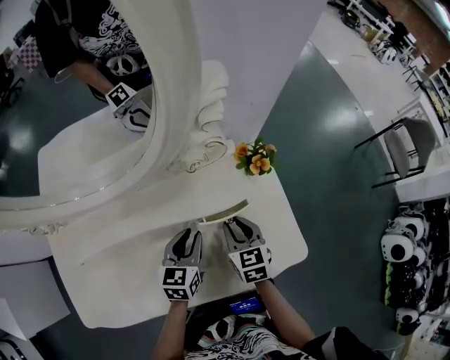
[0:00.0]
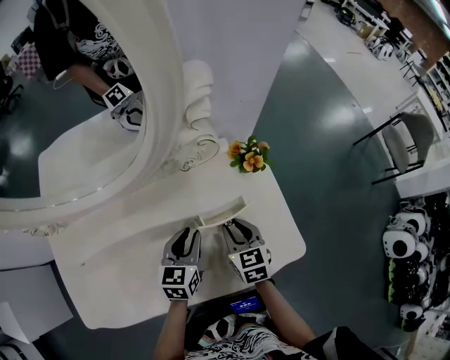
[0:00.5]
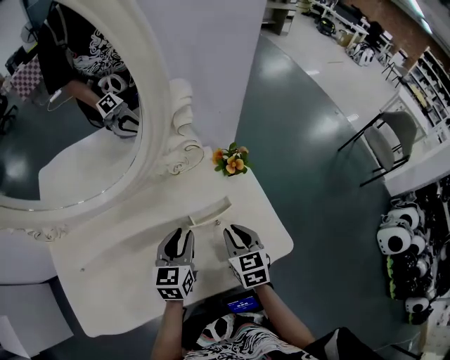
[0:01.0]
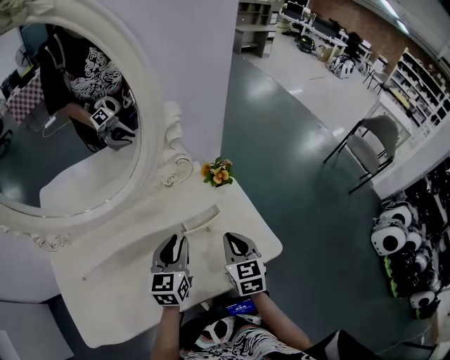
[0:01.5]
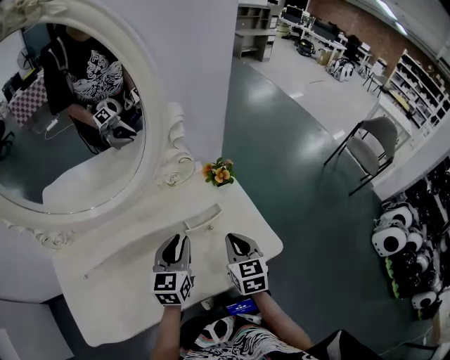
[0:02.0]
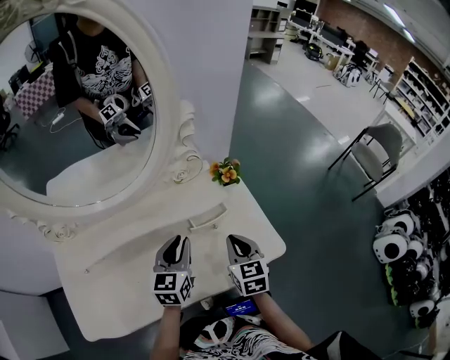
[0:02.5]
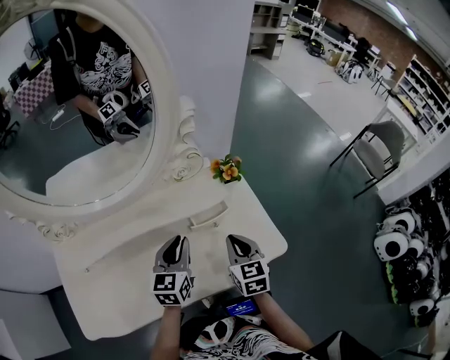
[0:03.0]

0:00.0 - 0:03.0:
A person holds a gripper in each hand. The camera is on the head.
0:00.0 - 0:01.5: The left gripper is displaced upward by roughly 10 cm. The right gripper moves upward, backward and to the right, approximately 15 cm, and closes up.
0:01.5 - 0:03.0: The grippers move only a little.

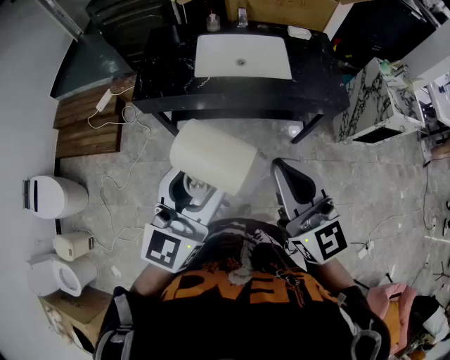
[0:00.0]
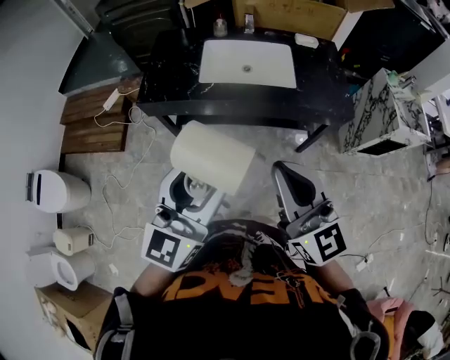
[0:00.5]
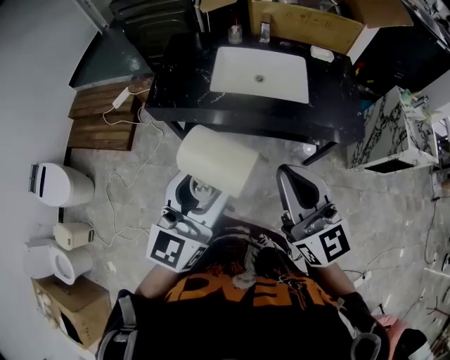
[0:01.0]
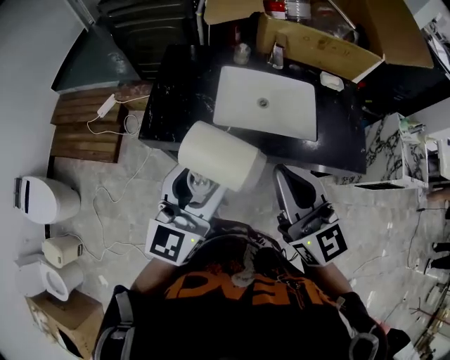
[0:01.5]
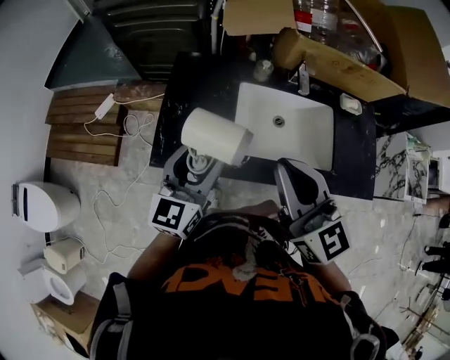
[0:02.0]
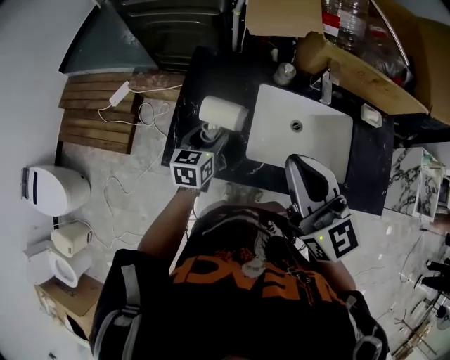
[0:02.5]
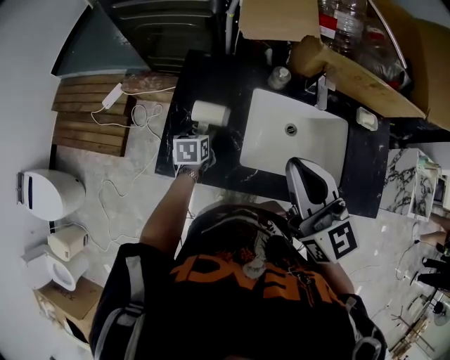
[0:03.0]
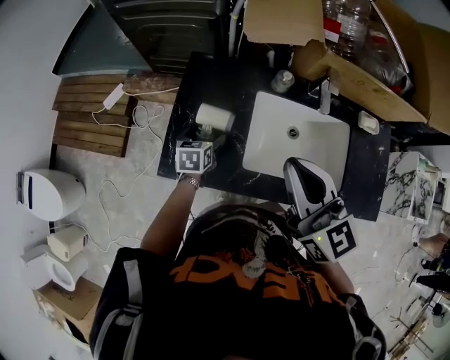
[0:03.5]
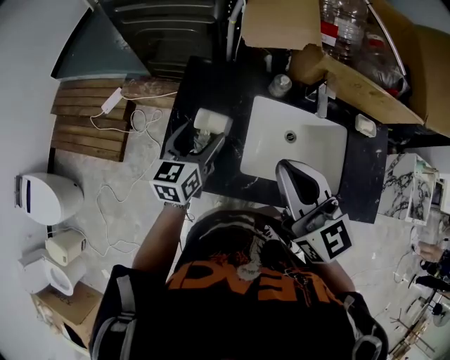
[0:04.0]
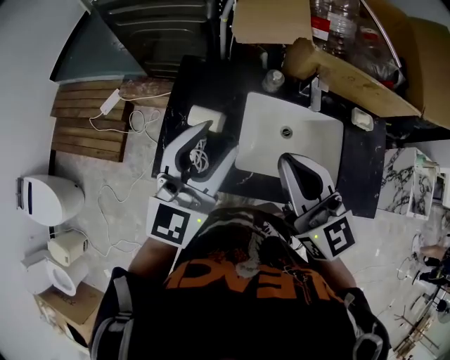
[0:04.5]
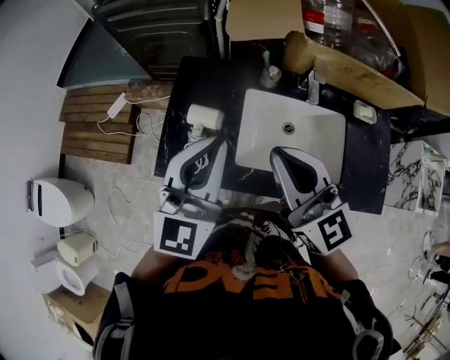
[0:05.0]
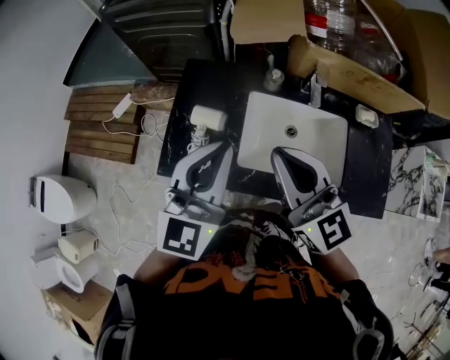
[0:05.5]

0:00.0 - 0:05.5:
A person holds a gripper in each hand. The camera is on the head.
0:00.0 - 0:02.0: The pair of grippers is taken forward, about 40 cm.
0:02.0 - 0:03.5: The left gripper moves downward and forward, some 30 cm, points its fingers roughly 40 degrees further downward, and opens up, while the right gripper moves forward, approximately 10 cm.
0:03.5 - 0:05.5: The left gripper shifts about 35 cm upward, tilts its fingers about 50 degrees upward, and closes.

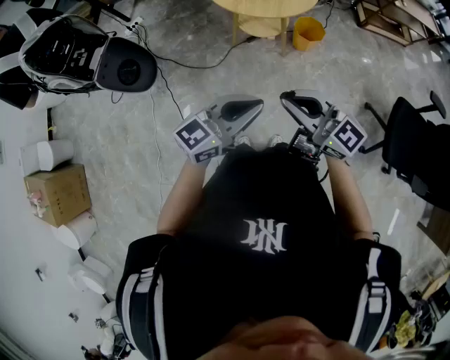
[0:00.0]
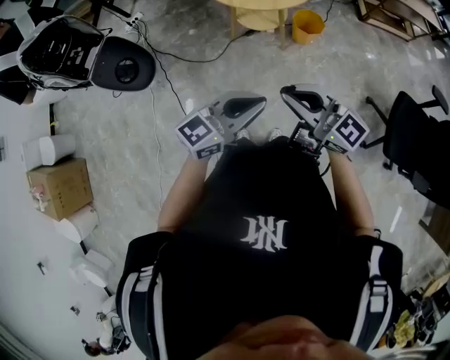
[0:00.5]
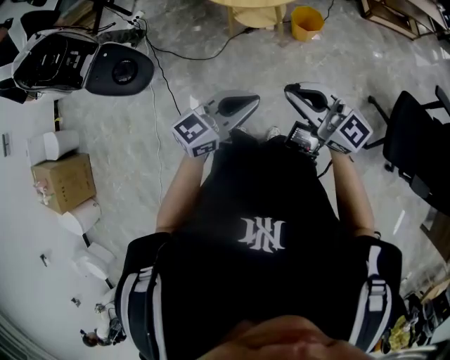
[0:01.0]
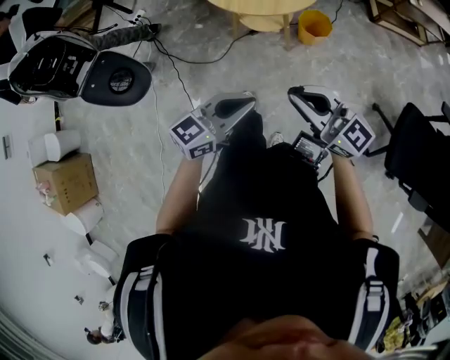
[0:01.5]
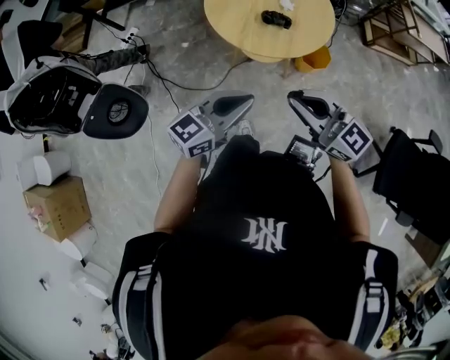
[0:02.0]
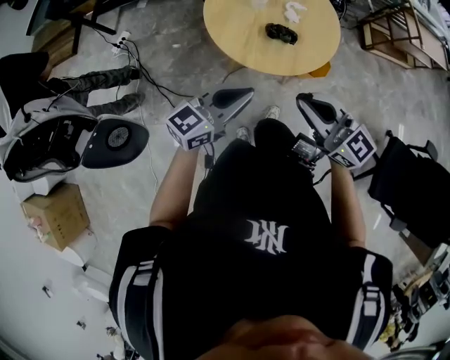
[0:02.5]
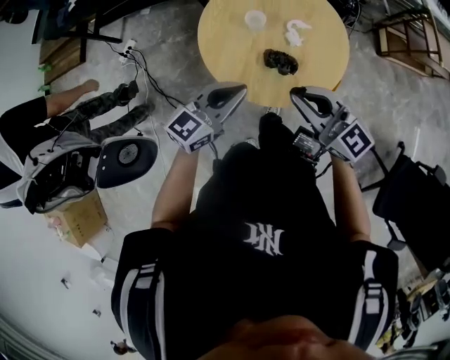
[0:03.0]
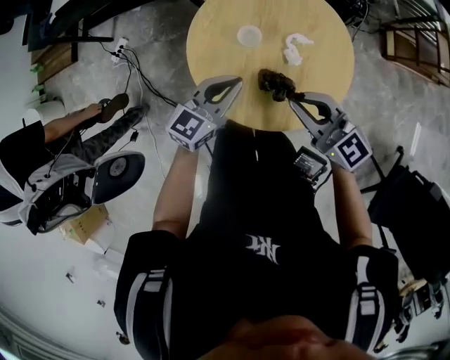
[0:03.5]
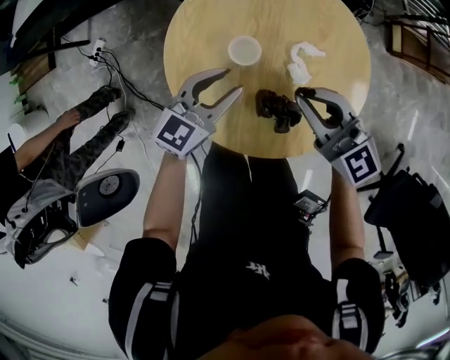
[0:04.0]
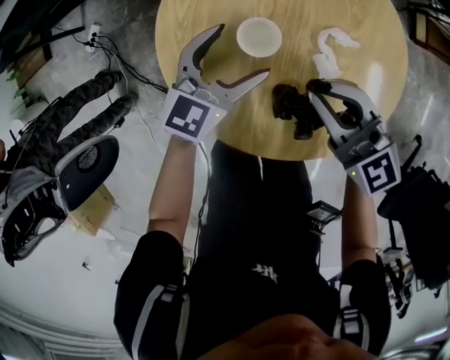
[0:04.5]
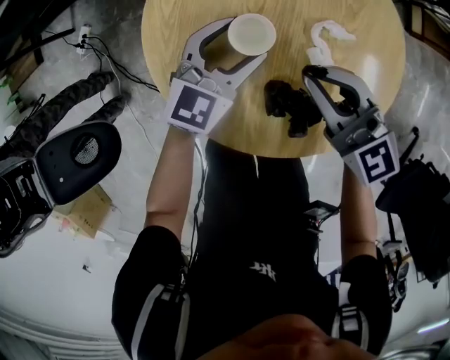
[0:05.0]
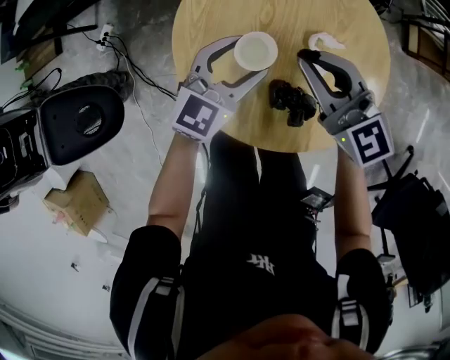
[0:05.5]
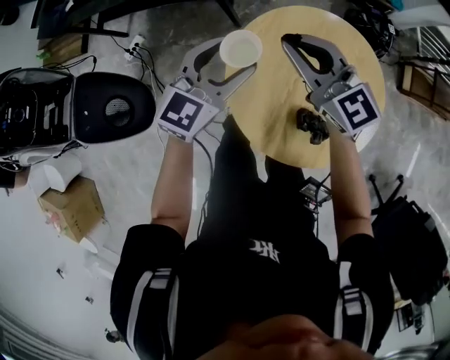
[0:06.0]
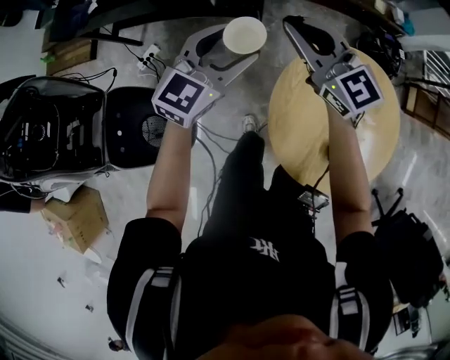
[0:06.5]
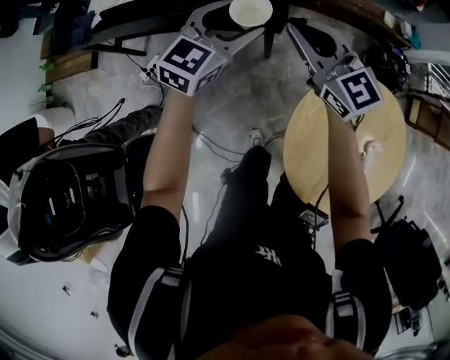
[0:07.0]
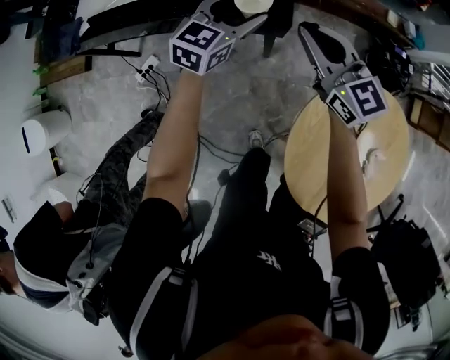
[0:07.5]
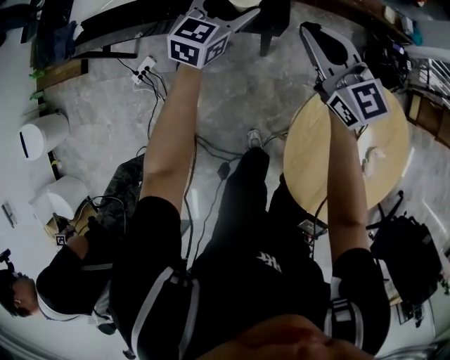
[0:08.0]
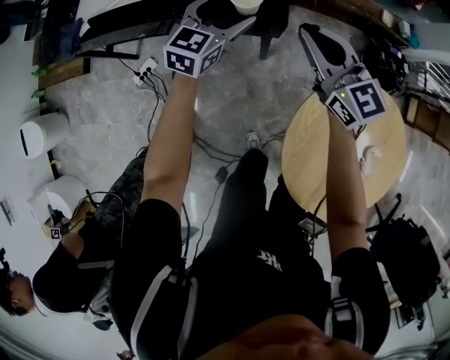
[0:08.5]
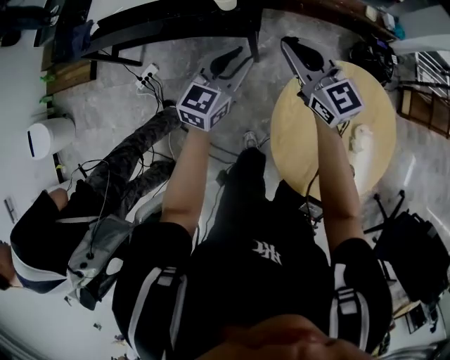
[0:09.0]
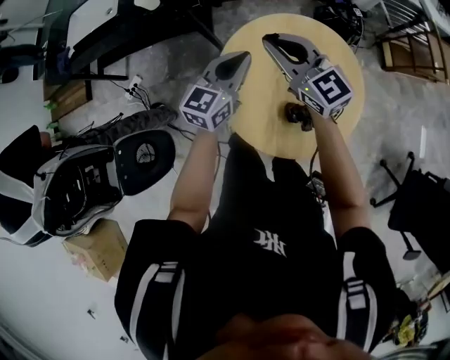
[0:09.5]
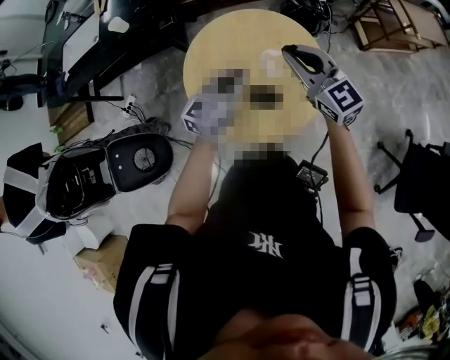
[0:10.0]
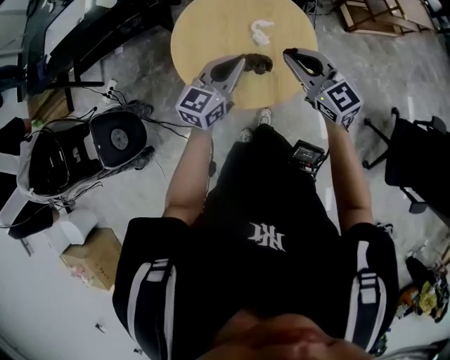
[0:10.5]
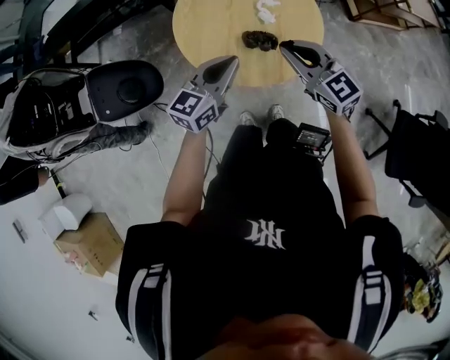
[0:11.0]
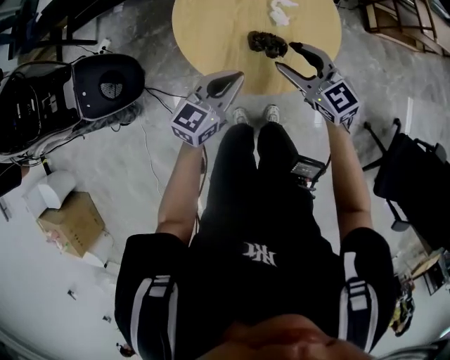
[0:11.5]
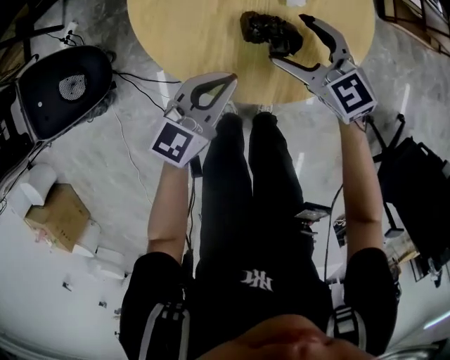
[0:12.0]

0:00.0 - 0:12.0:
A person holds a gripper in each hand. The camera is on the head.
0:00.0 - 0:02.0: Both grippers travel together forward, about 25 cm.
0:02.0 - 0:04.0: The two grippers travel together, forward, about 50 cm. Both grippers move downward, roughly 20 cm. The left gripper opens its fingers.
0:04.0 - 0:06.0: The left gripper goes some 20 cm upward, to the left and forward. Meanwhile the right gripper goes some 25 cm to the left, forward and upward.
0:06.0 - 0:08.0: The two grippers go roughly 35 cm forward and to the left.
0:08.0 - 0:10.0: The two grippers travel together, backward and to the right, roughly 60 cm. The left gripper closes.
0:10.0 - 0:12.0: The left gripper heads downward and backward, covering about 25 cm; the right gripper shifts about 25 cm downward, changes its angle by about 30 degrees, and opens.

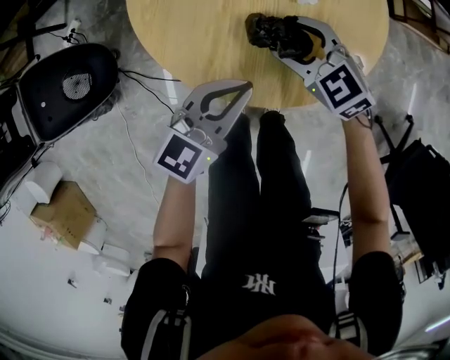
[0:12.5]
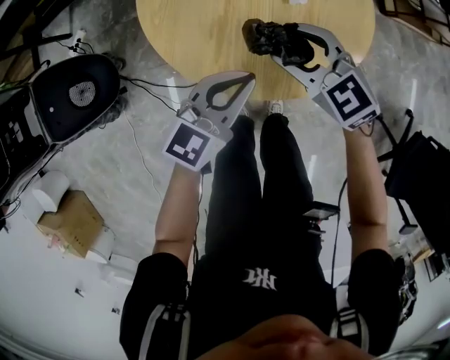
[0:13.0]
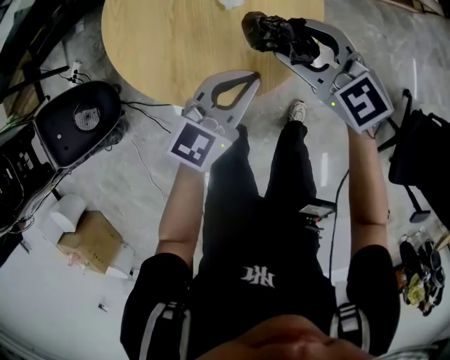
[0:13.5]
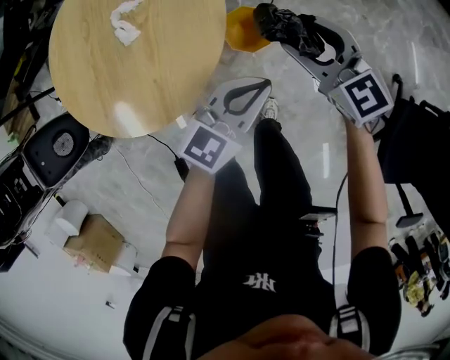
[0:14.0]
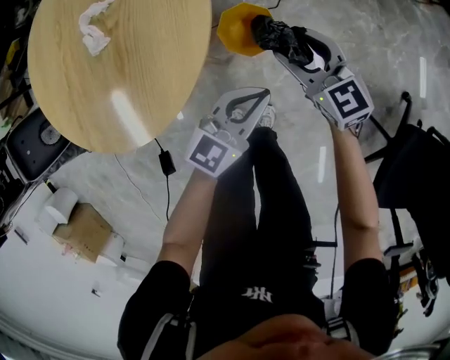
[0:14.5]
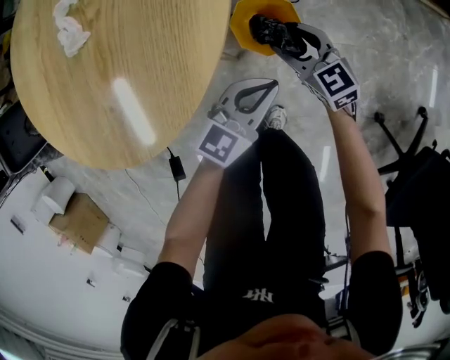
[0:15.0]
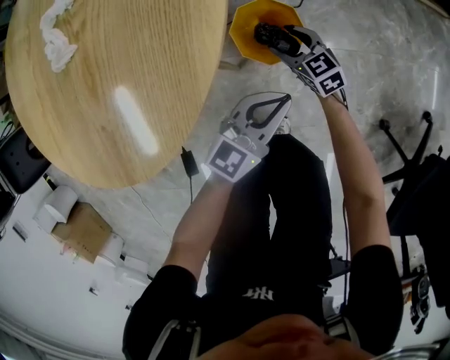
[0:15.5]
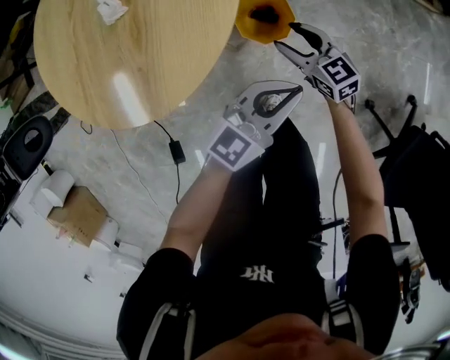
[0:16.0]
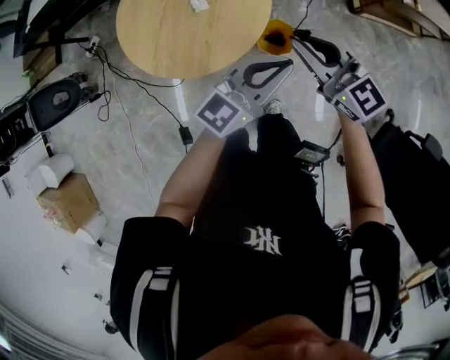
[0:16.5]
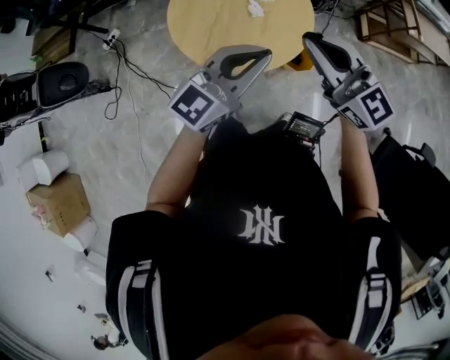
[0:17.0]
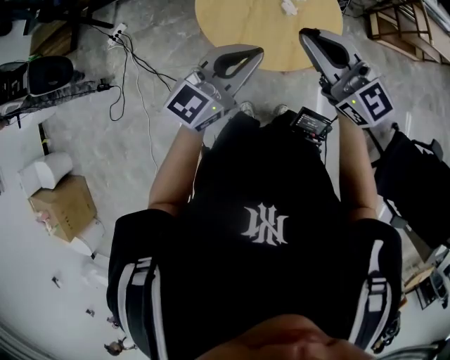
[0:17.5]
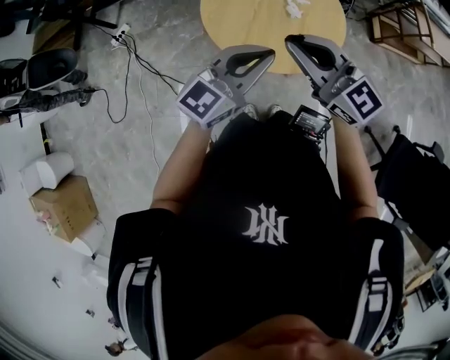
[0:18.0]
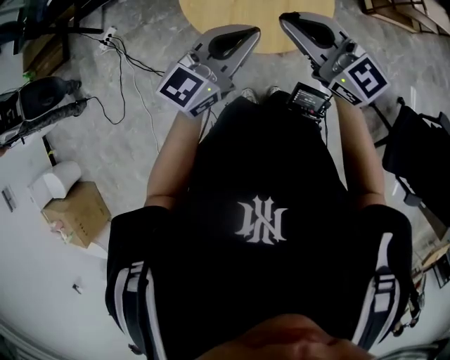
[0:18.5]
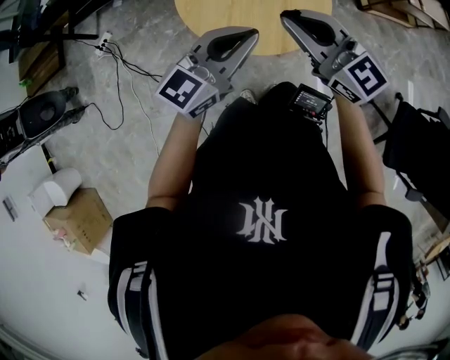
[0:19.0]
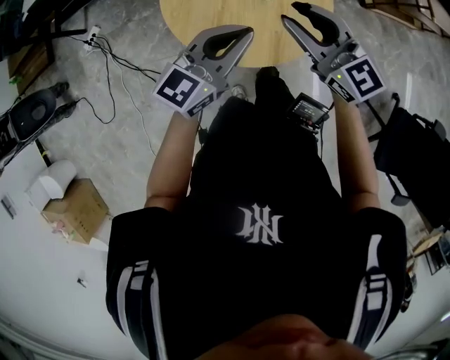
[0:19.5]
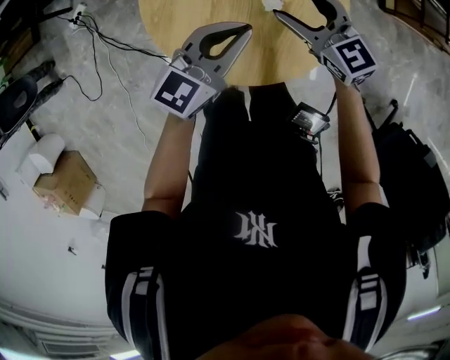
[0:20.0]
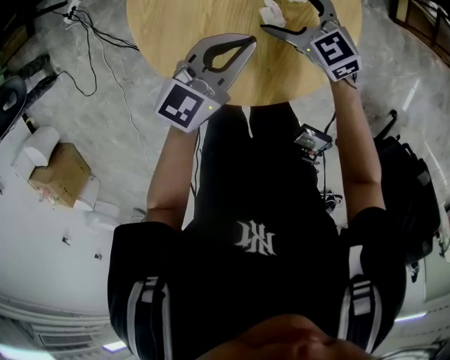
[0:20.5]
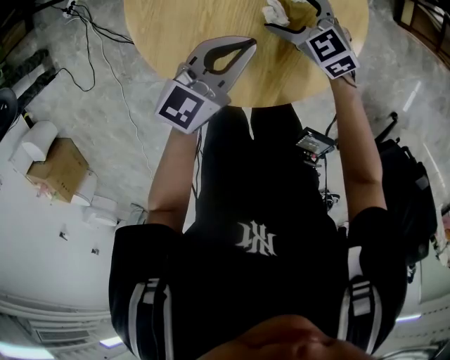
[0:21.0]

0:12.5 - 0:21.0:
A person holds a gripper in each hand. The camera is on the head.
0:12.5 - 0:14.5: The grippers both shift to the right by about 40 cm. The right gripper changes its angle by approximately 30 degrees.
0:14.5 - 0:16.5: Both grippers travel together upward, approximately 30 cm. The right gripper changes its angle by about 20 degrees, and closes.
0:16.5 - 0:19.0: The grippers both shift to the left by about 35 cm.
0:19.0 - 0:21.0: The right gripper goes roughly 50 cm downward and forward, tips its fingers downward by about 40 degrees, and opens its fingers. The left gripper travels forward and downward by about 30 cm, and changes its angle by roughly 30 degrees.
